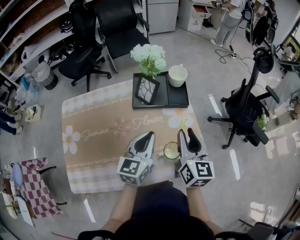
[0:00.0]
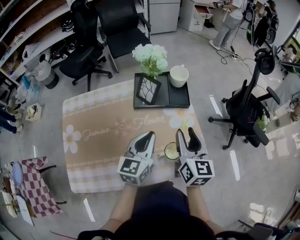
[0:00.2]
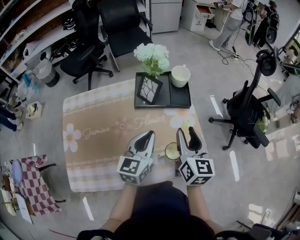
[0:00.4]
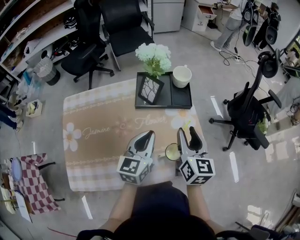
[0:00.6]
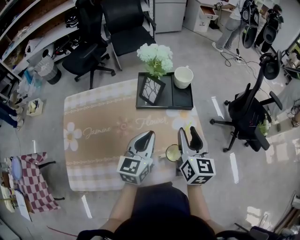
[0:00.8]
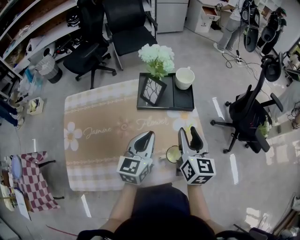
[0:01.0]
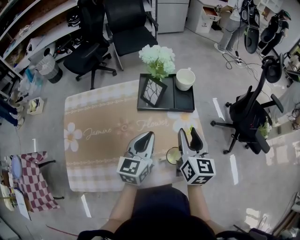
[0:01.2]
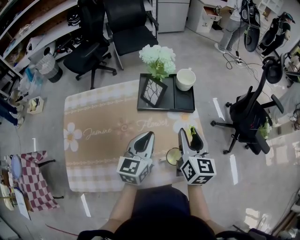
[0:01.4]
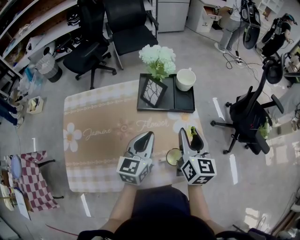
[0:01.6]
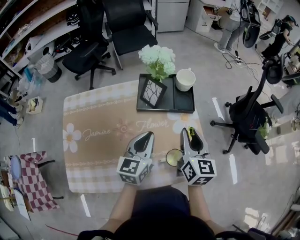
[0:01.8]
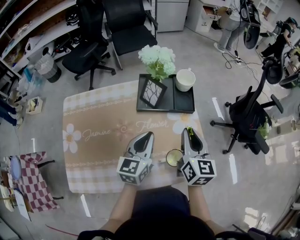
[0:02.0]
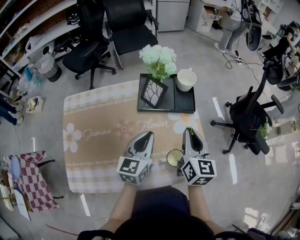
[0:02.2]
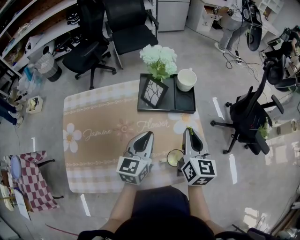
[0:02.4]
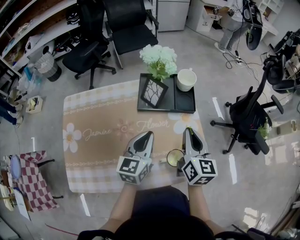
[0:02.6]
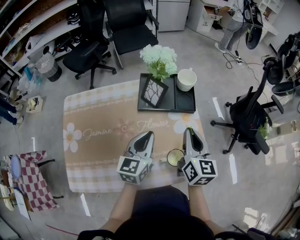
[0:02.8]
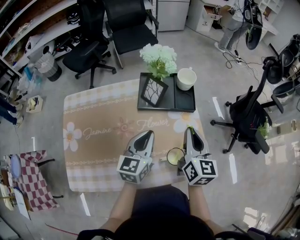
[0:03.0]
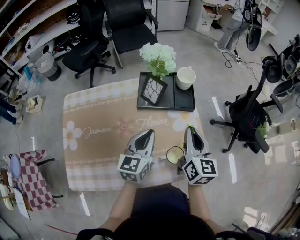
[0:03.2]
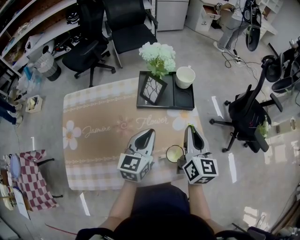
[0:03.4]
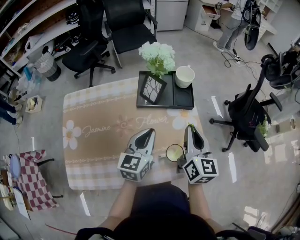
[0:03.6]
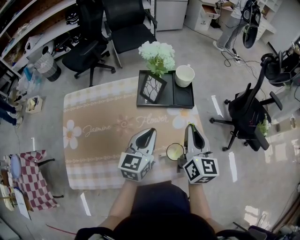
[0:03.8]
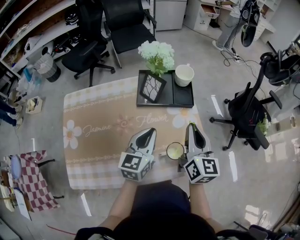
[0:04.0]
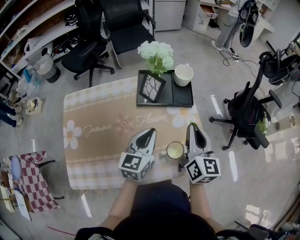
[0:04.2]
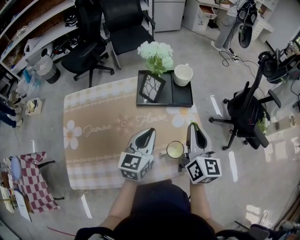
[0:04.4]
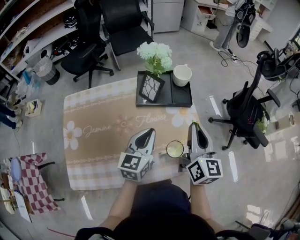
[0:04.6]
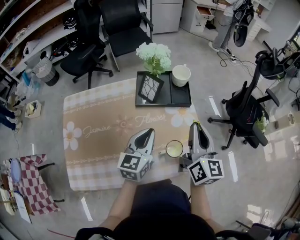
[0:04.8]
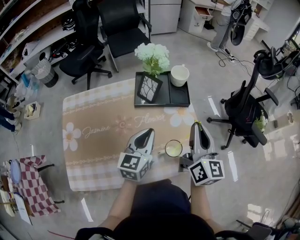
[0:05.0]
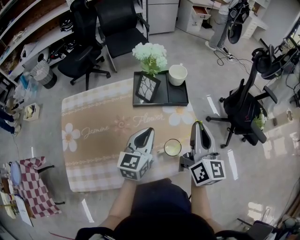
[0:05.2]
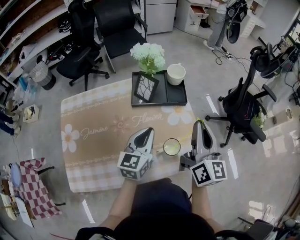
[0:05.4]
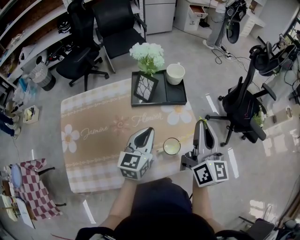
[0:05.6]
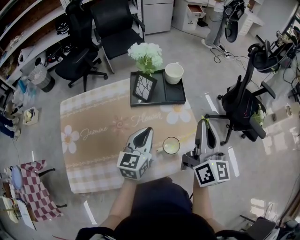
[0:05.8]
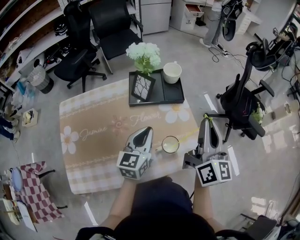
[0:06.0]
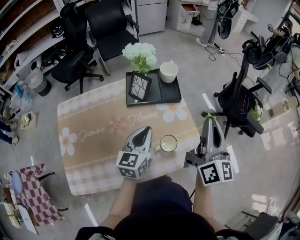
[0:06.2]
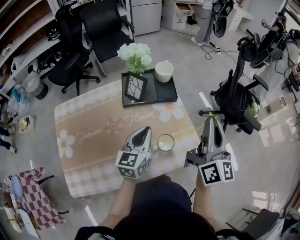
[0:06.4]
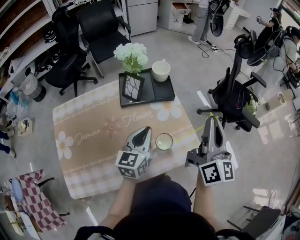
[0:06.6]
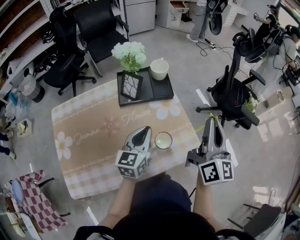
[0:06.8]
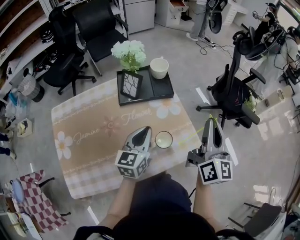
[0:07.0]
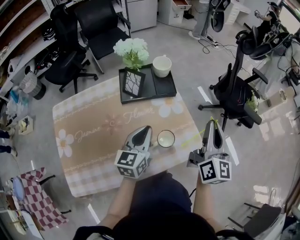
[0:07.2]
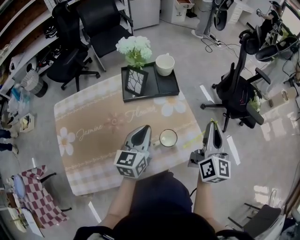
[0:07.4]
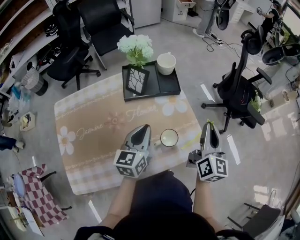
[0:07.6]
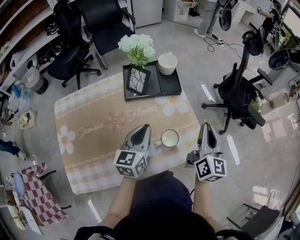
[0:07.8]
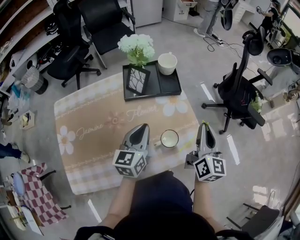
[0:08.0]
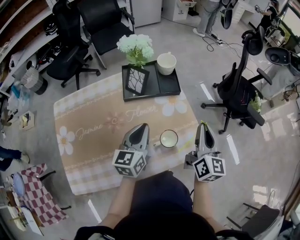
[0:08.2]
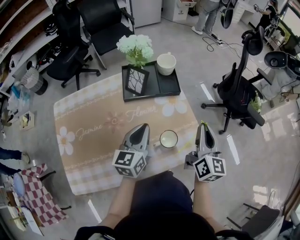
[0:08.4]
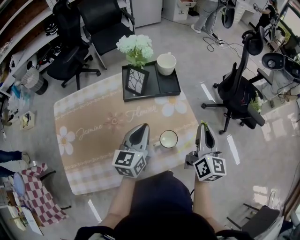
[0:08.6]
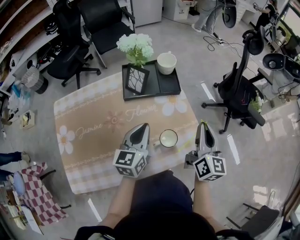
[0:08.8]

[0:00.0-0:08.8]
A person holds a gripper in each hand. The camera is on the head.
0.0 to 1.4 s: The grippers move only a little.
1.4 to 3.0 s: The right gripper closes its fingers.
3.0 to 4.4 s: The grippers stay close to where they were, moving slightly.
4.4 to 5.8 s: The right gripper moves upward, about 5 cm.
5.8 to 7.4 s: The right gripper travels to the right and downward by some 10 cm.
7.4 to 8.8 s: The grippers make only small movements.

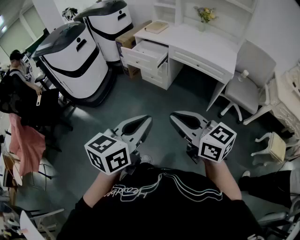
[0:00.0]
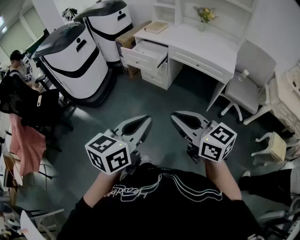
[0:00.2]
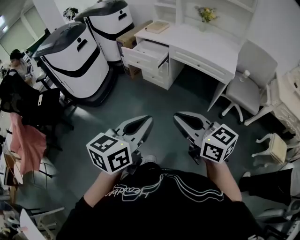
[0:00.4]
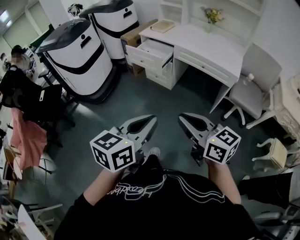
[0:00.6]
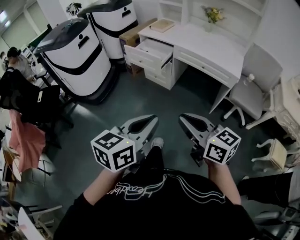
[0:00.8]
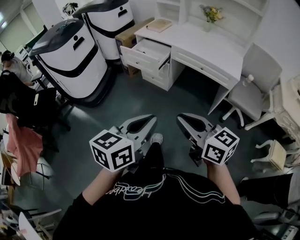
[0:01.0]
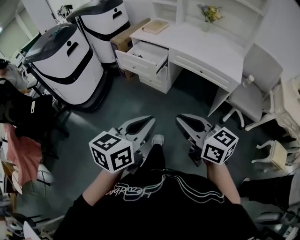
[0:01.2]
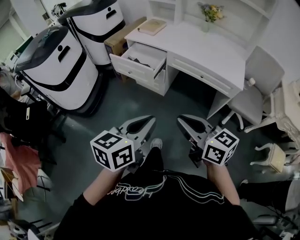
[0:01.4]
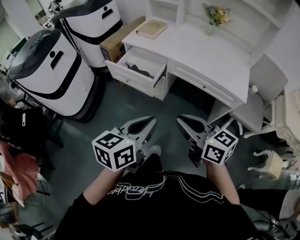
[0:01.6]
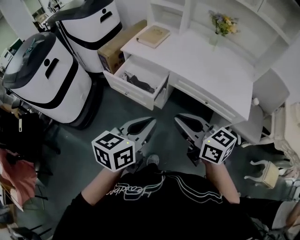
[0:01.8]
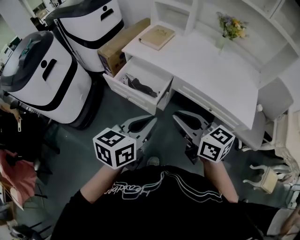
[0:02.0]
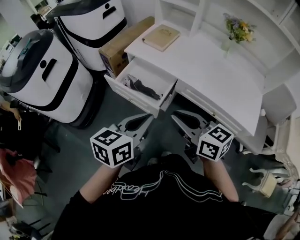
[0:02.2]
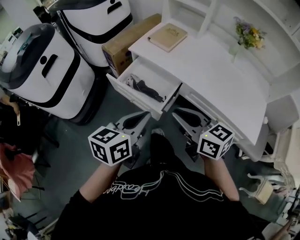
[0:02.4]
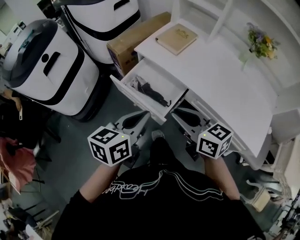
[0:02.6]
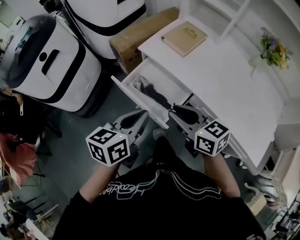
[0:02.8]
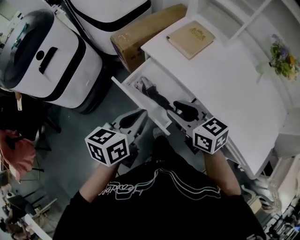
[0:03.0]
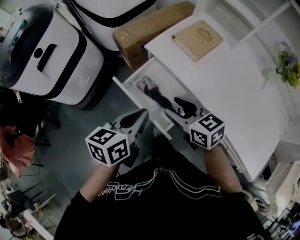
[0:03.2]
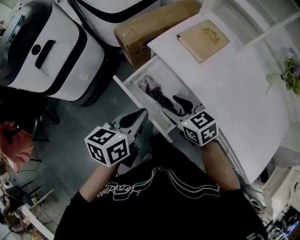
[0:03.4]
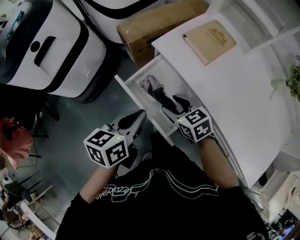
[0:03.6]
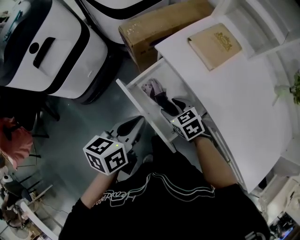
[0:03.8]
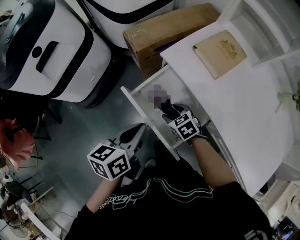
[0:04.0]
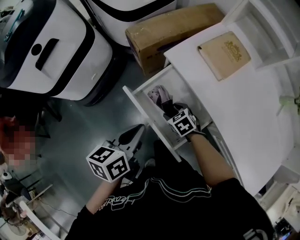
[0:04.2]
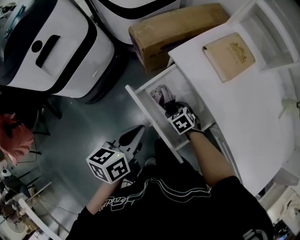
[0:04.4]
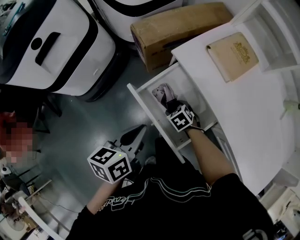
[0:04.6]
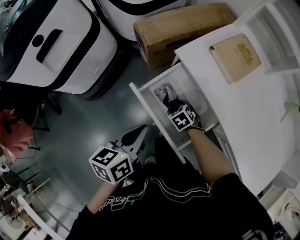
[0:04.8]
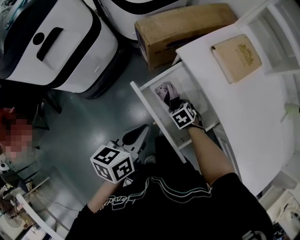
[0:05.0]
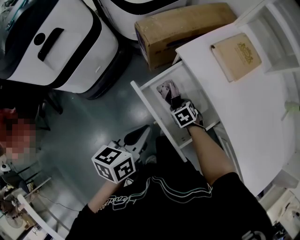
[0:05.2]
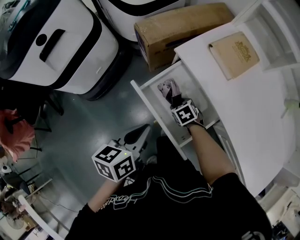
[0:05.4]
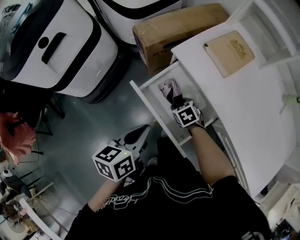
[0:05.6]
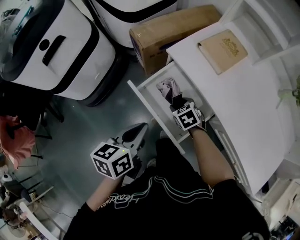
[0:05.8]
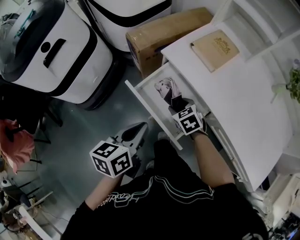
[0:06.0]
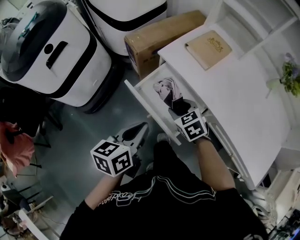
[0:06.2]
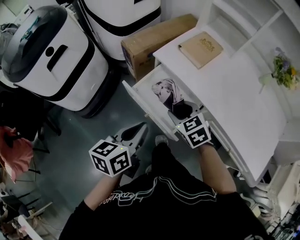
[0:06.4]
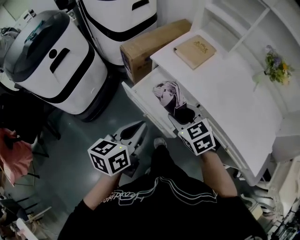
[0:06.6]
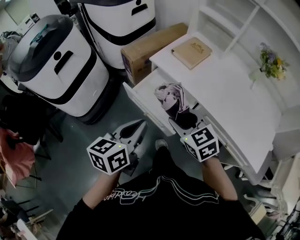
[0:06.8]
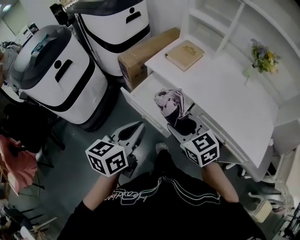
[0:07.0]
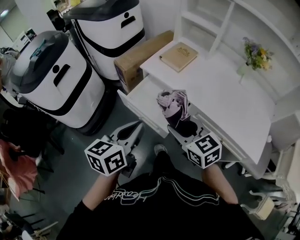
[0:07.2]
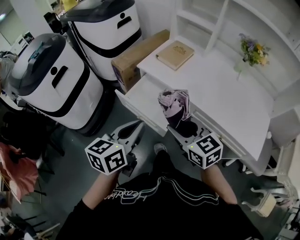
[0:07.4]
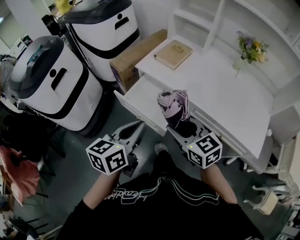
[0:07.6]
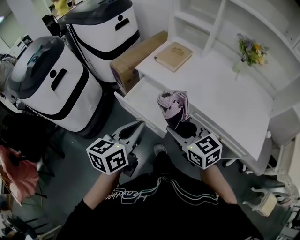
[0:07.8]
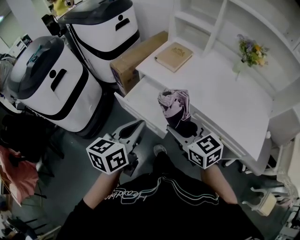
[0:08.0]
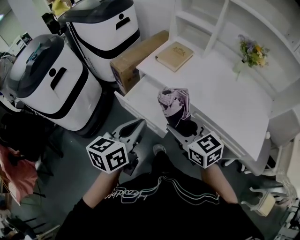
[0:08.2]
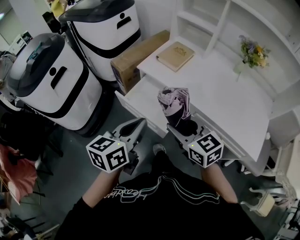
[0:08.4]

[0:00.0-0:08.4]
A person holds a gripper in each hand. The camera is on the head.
0.0 to 1.4 s: The two grippers go approximately 25 cm forward.
1.4 to 2.8 s: The two grippers travel together, forward, some 50 cm. The right gripper turns by some 20 degrees.
2.8 to 4.2 s: The left gripper is displaced forward, downward and to the left by about 20 cm, and rotates approximately 20 degrees; the right gripper is displaced downward and forward by about 35 cm, points its fingers about 40 degrees further downward, and opens.
4.2 to 5.6 s: There are only small adjustments of the grippers.
5.6 to 7.0 s: The right gripper shifts about 40 cm upward and backward, and tips its fingers upward by approximately 40 degrees, while the left gripper heads upward and backward, covering roughly 20 cm, and rotates some 20 degrees.
7.0 to 8.4 s: There are only small adjustments of the grippers.

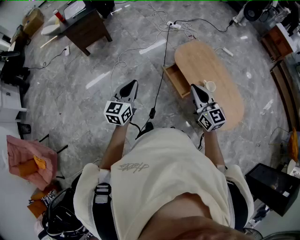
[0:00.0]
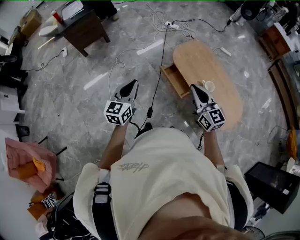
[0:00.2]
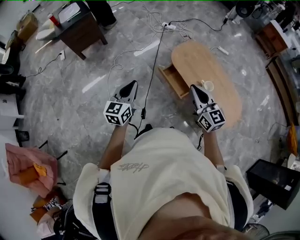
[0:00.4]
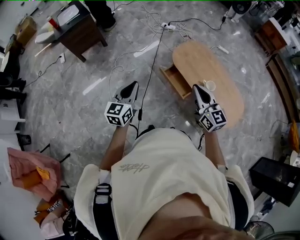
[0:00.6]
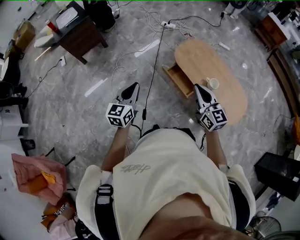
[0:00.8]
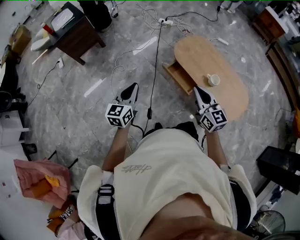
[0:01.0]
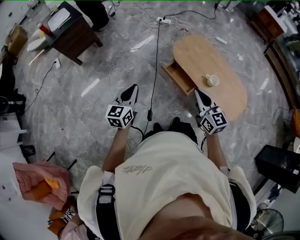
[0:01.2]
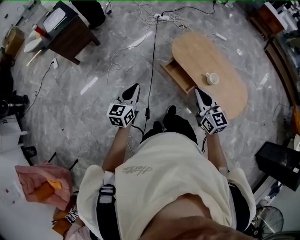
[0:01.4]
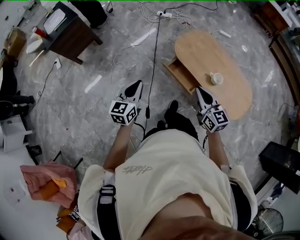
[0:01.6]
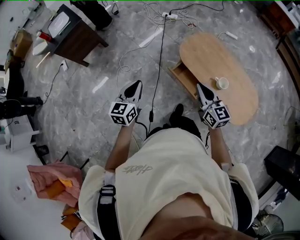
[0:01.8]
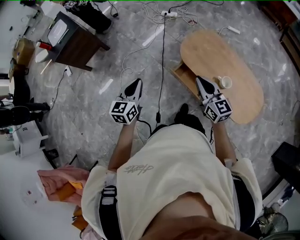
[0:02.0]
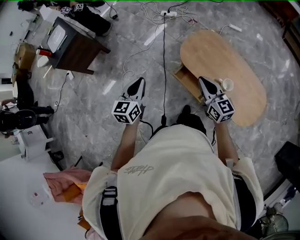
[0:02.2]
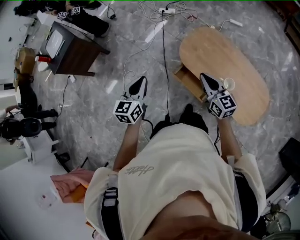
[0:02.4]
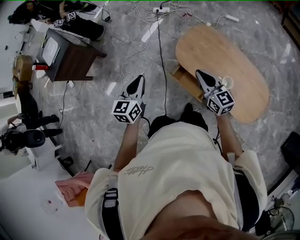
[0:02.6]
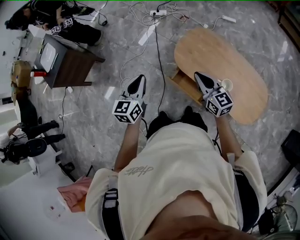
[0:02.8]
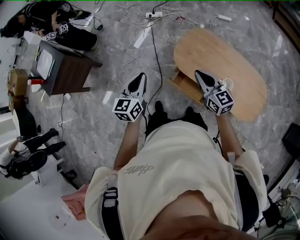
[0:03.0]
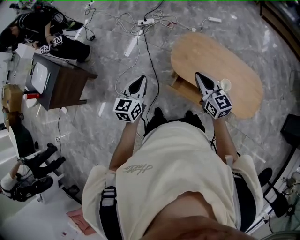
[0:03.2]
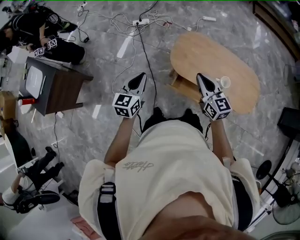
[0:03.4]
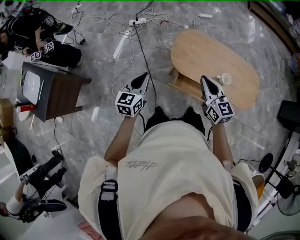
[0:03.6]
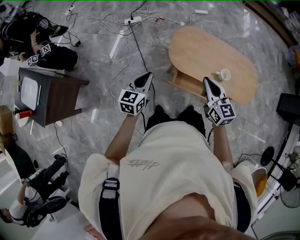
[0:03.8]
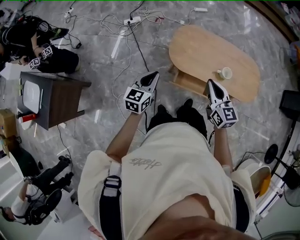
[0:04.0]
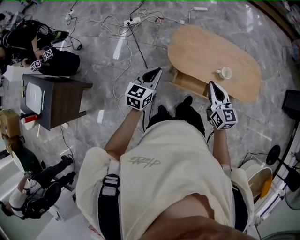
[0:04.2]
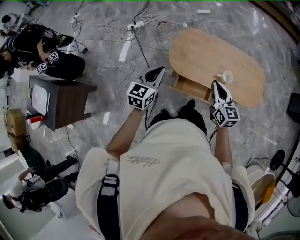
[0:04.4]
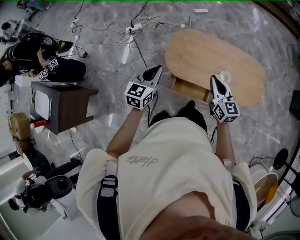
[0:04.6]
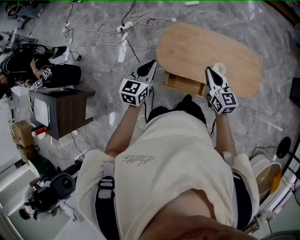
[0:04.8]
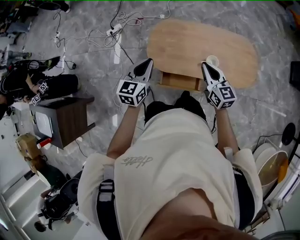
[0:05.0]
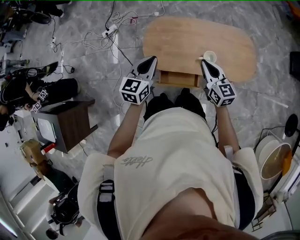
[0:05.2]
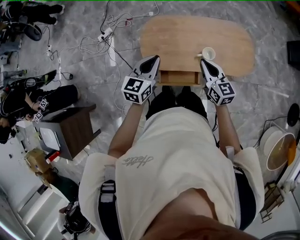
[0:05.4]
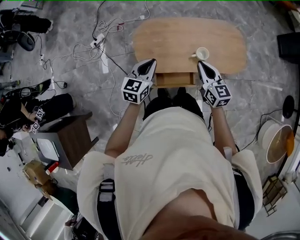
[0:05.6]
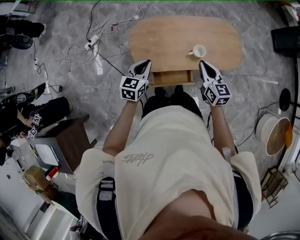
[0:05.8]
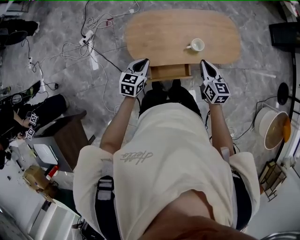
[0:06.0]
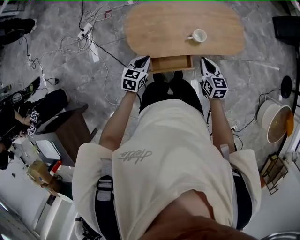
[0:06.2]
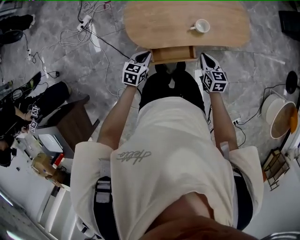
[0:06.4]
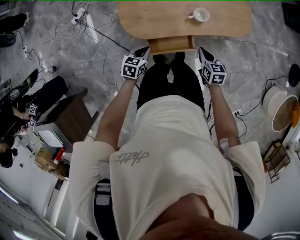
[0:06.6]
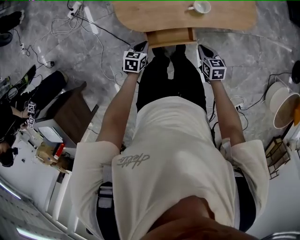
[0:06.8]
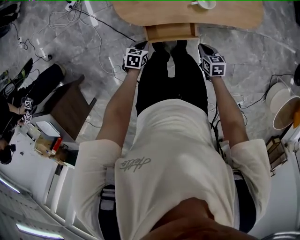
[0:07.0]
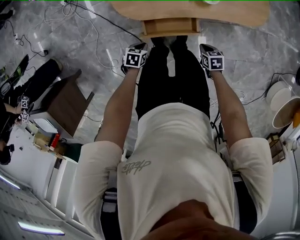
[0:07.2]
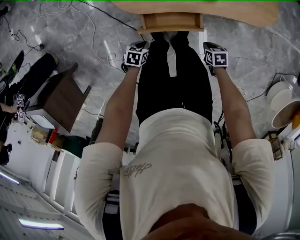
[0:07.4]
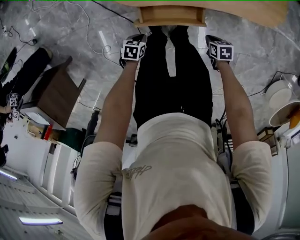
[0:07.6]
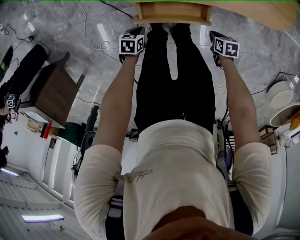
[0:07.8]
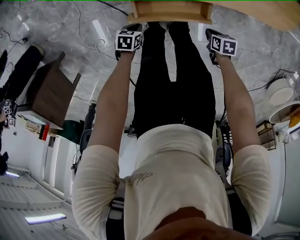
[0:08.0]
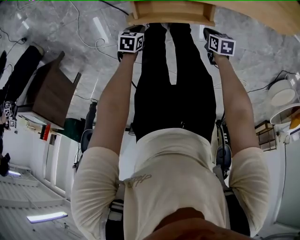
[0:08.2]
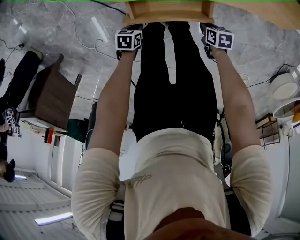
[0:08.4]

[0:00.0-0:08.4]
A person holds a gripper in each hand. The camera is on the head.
0.0 to 1.4 s: The right gripper travels to the left by about 5 cm, while the left gripper goes about 10 cm forward, to the left and downward.
1.4 to 2.8 s: The right gripper moves forward, some 30 cm; the left gripper is displaced forward and to the right by some 35 cm.
2.8 to 4.2 s: The left gripper moves roughly 10 cm, and swivels roughly 40 degrees; the right gripper rotates approximately 40 degrees.
4.2 to 5.6 s: Both grippers move to the right and forward, about 25 cm.
5.6 to 7.0 s: Both grippers move downward, approximately 35 cm. The right gripper points its fingers some 40 degrees further downward. Meanwhile the left gripper angles its fingers downward, by roughly 40 degrees.
7.0 to 8.4 s: The two grippers go roughly 30 cm downward. The right gripper rotates approximately 30 degrees, while the left gripper swivels about 20 degrees.
